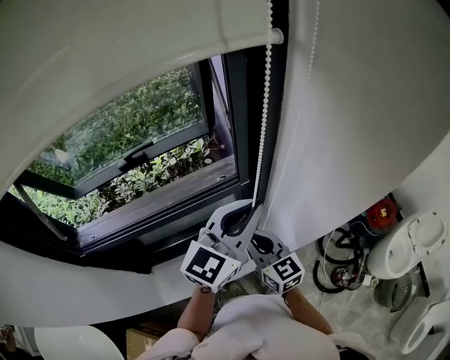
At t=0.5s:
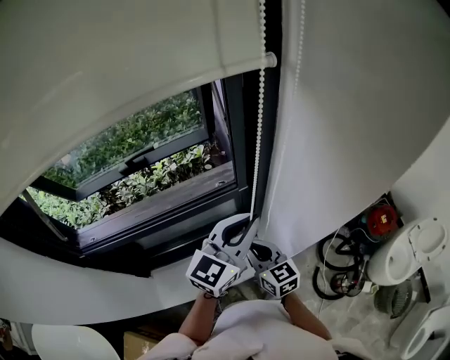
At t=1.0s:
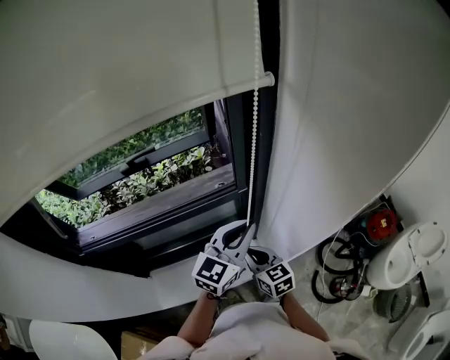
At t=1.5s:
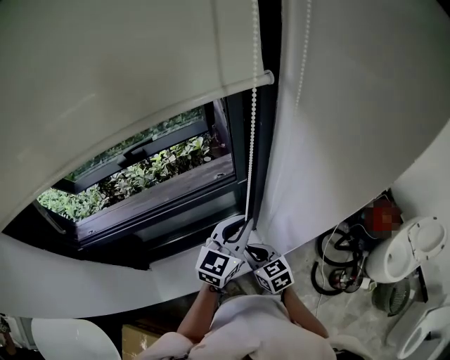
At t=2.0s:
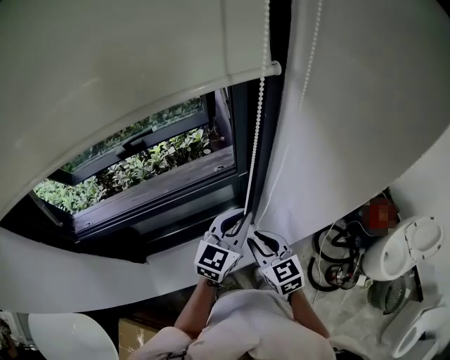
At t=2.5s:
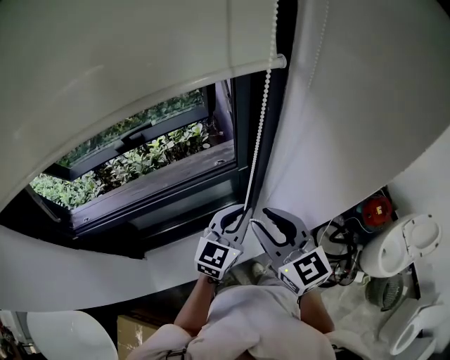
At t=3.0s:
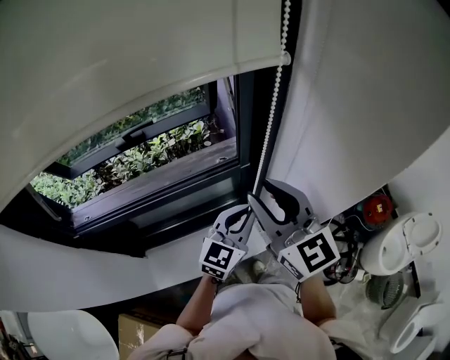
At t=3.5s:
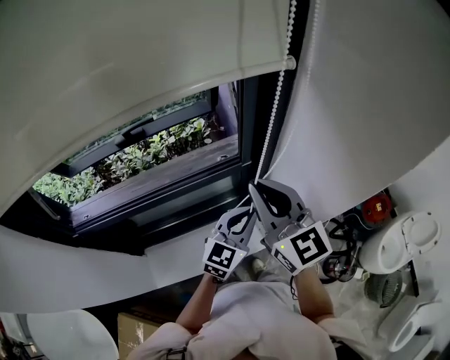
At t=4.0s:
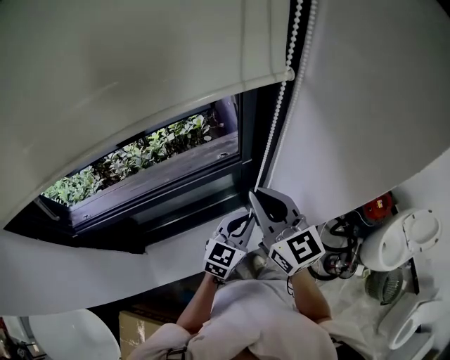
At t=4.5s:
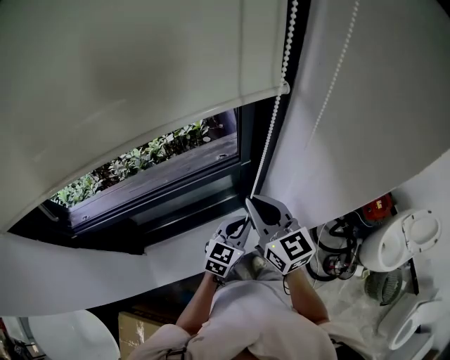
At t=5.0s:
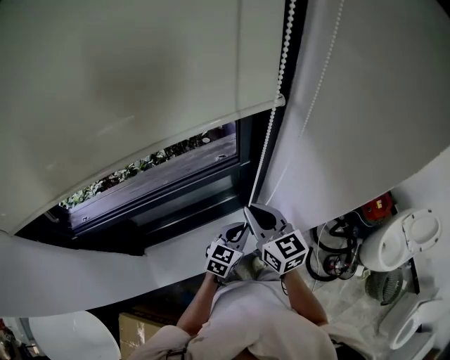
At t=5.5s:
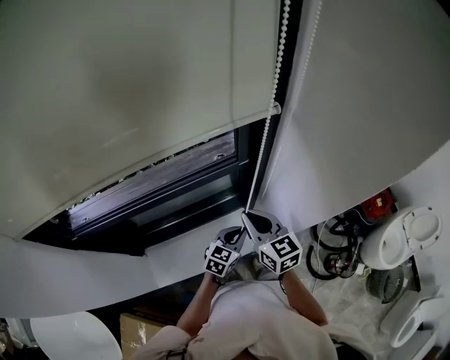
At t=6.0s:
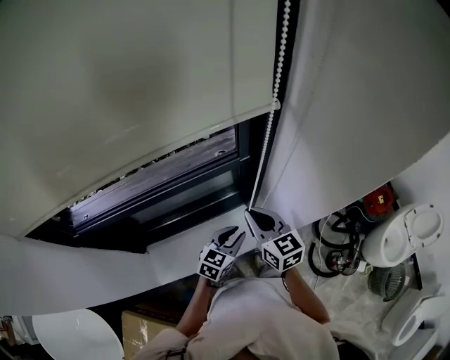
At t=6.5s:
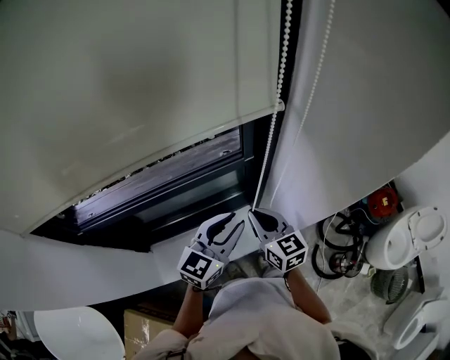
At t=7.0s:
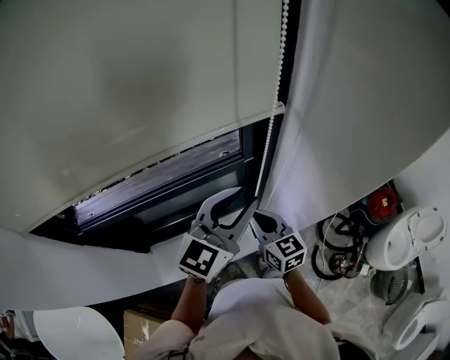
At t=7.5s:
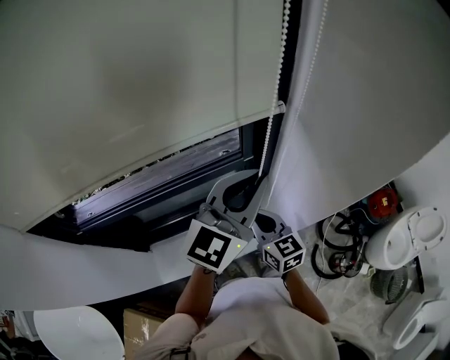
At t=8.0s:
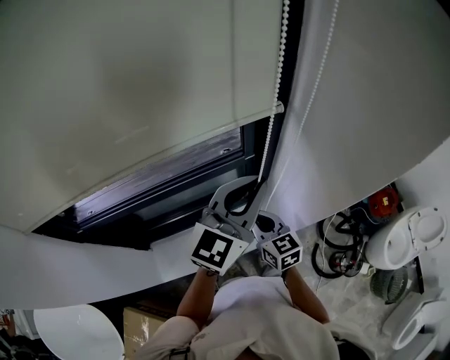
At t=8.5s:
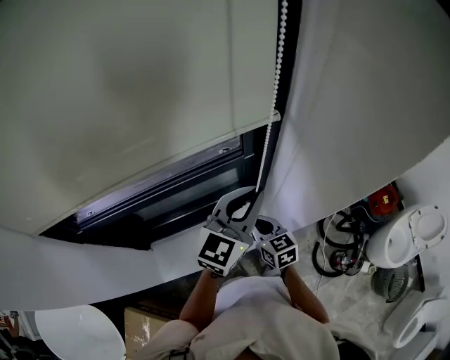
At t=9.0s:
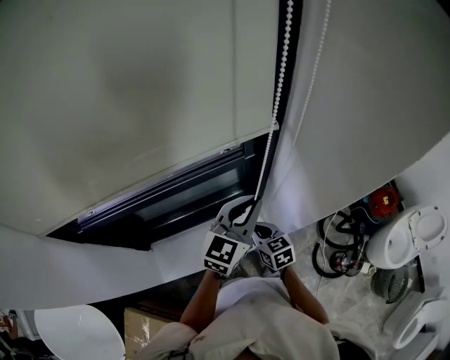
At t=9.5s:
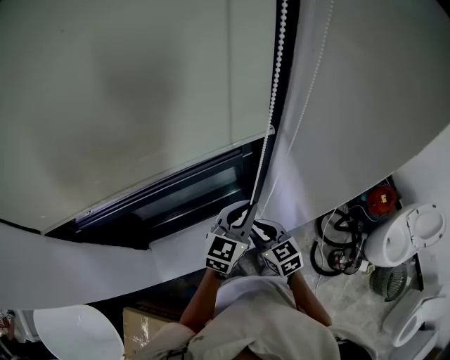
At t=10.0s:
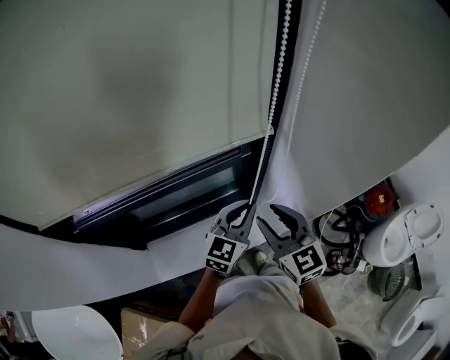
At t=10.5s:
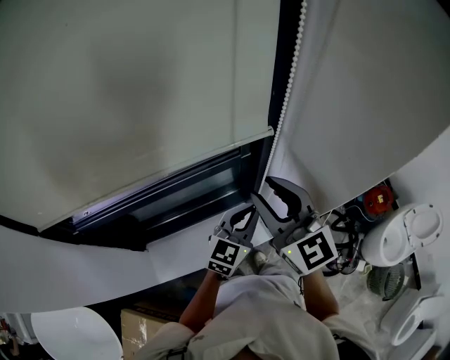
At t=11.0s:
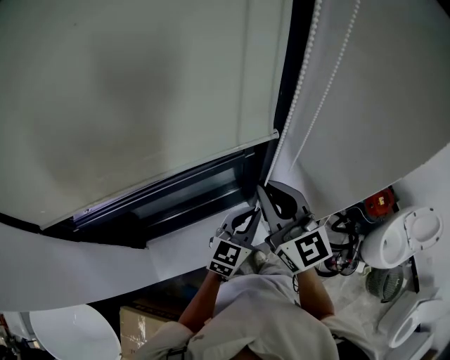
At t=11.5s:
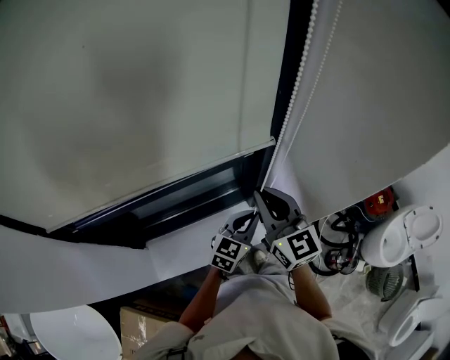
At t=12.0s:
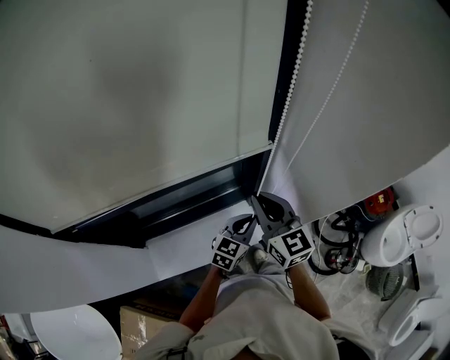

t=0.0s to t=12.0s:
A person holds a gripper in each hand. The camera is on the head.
t=0.0s to t=2.0s: The left gripper goes approximately 15 cm downward. The right gripper goes downward and returns, roughly 10 cm each way.
t=2.0s to t=4.0s: The left gripper heads downward, covering about 5 cm; the right gripper is displaced upward by some 15 cm, and changes its angle by some 20 degrees.
t=4.0s to t=6.0s: The grippers both shift downward by roughly 15 cm.
t=6.0s to t=8.0s: The left gripper is displaced upward by some 30 cm, and swivels about 30 degrees.
t=8.0s to t=10.0s: The right gripper goes approximately 10 cm upward, and opens; the left gripper is displaced downward by some 15 cm.
t=10.0s to t=12.0s: The right gripper travels upward and back again, about 10 cm each way, and closes its fingers; the left gripper goes some 15 cm downward.

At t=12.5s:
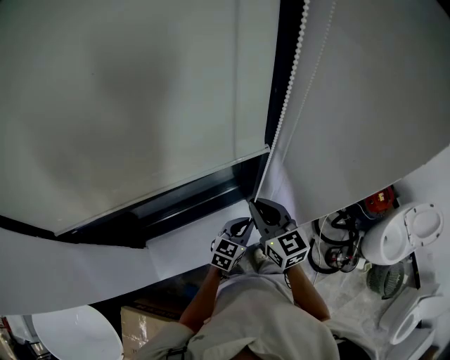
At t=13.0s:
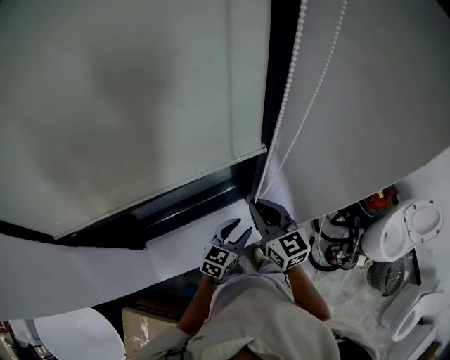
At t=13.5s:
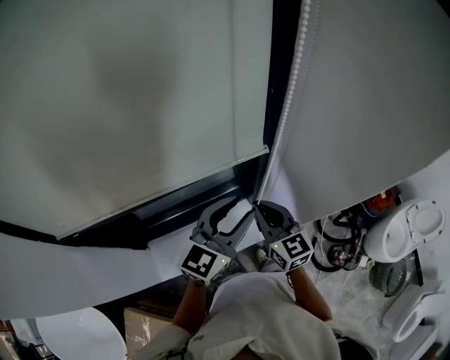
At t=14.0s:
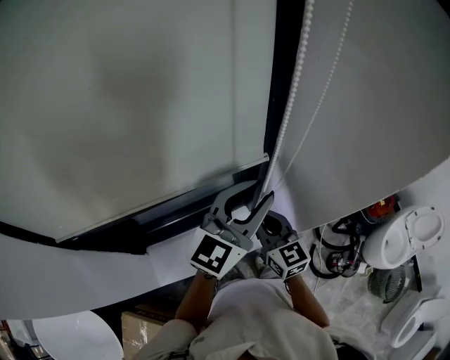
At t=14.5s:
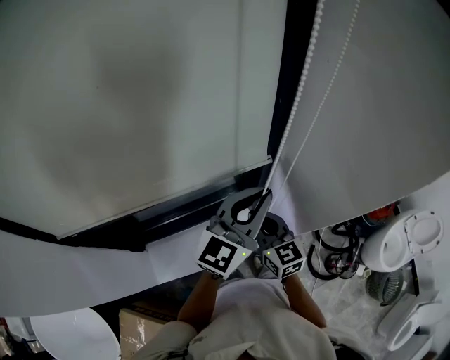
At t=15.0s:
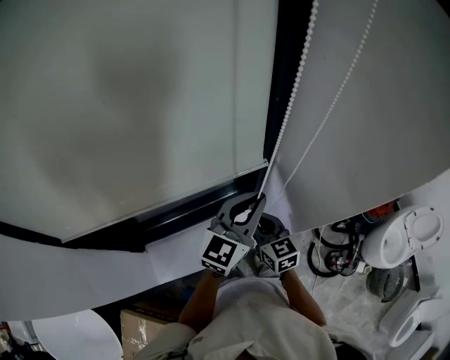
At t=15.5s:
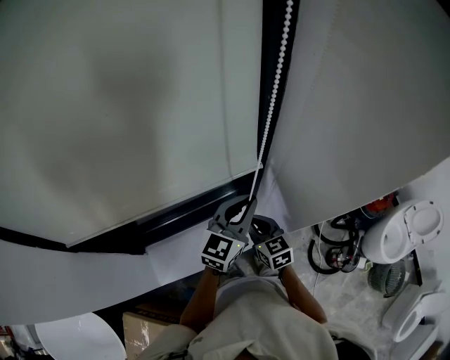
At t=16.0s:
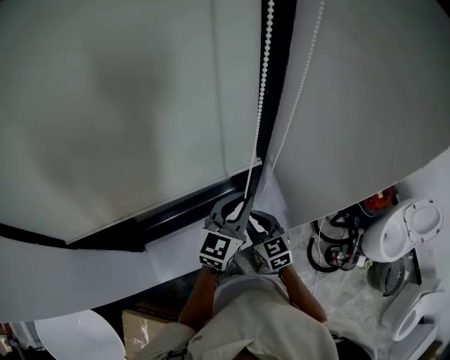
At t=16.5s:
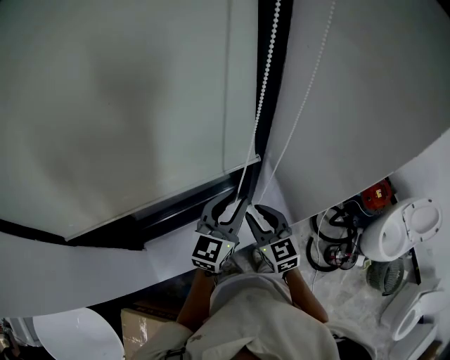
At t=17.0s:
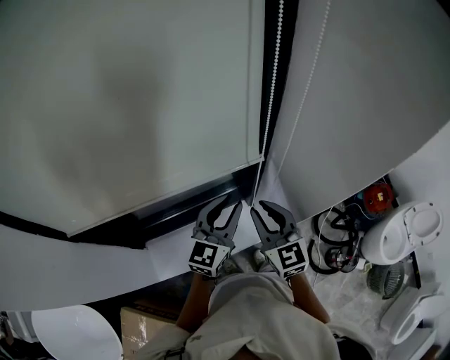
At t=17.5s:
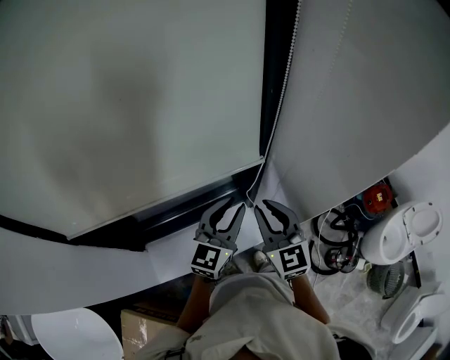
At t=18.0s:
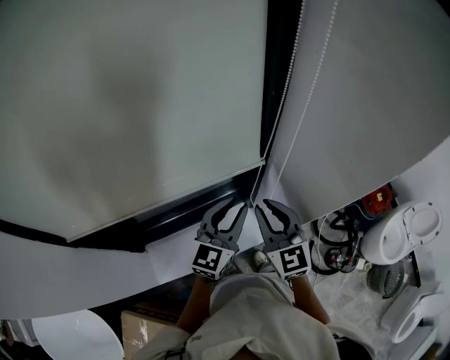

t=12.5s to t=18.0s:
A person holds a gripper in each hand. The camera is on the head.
t=12.5s to t=14.5s: The left gripper shifts some 30 cm upward, rotates roughly 30 degrees, and opens, then closes once more.
t=14.5s to t=16.0s: The two grippers go roughly 10 cm downward.
t=16.0s to t=18.0s: The right gripper goes some 15 cm upward, and turns by about 20 degrees.

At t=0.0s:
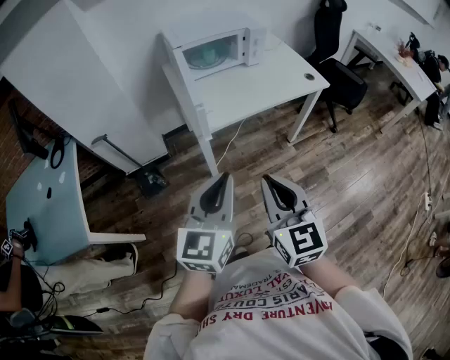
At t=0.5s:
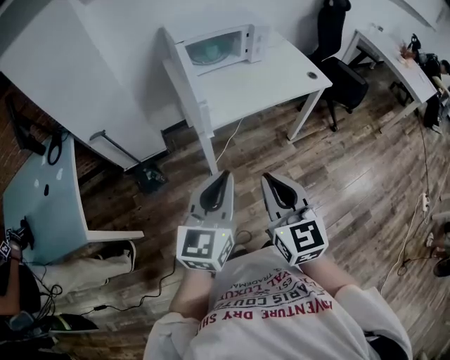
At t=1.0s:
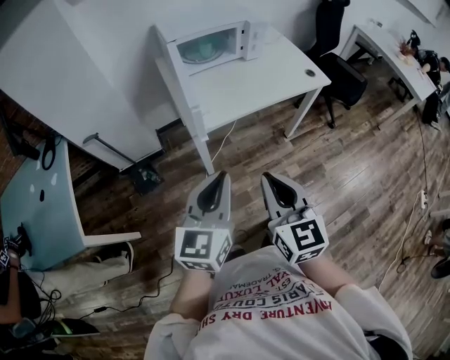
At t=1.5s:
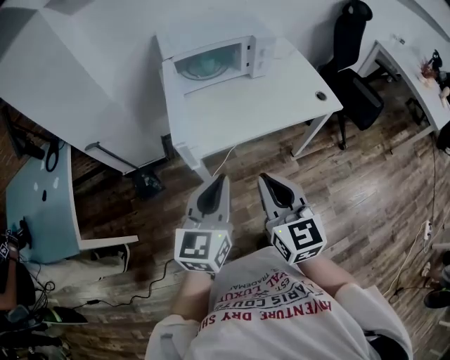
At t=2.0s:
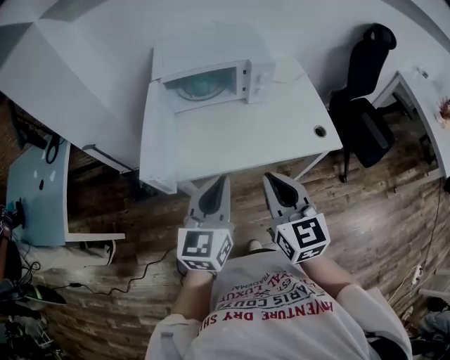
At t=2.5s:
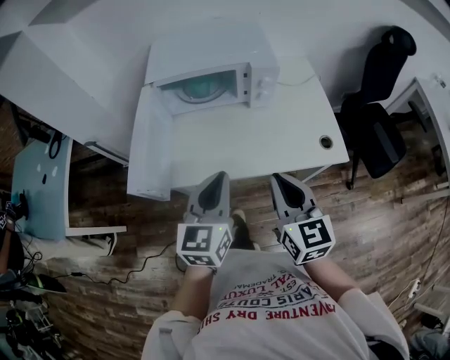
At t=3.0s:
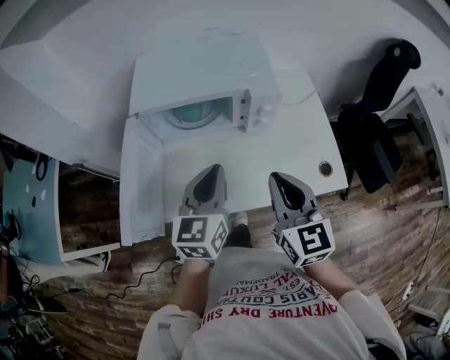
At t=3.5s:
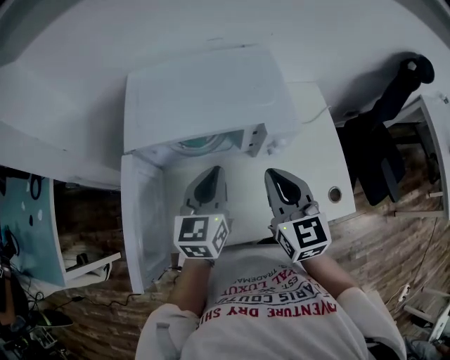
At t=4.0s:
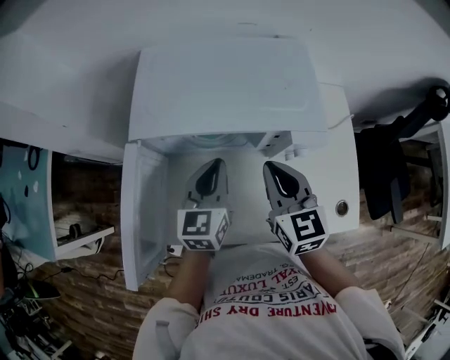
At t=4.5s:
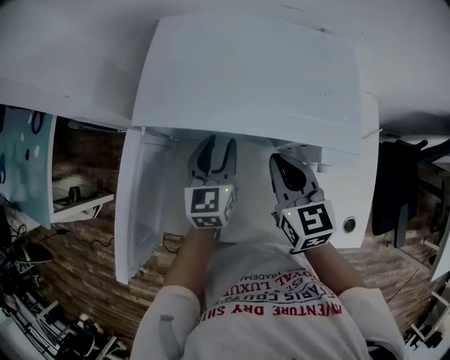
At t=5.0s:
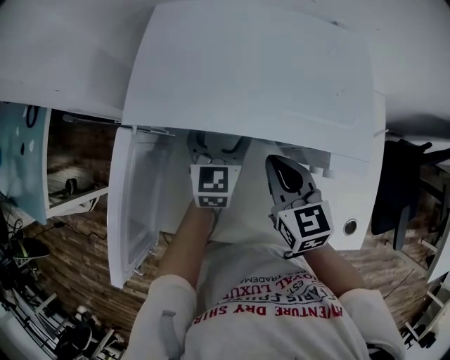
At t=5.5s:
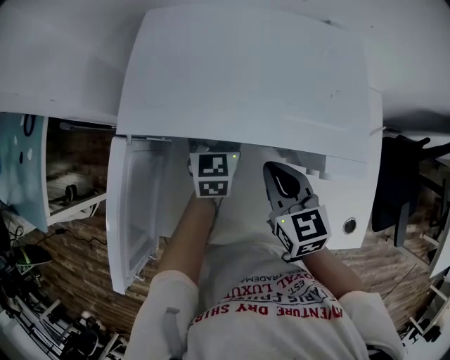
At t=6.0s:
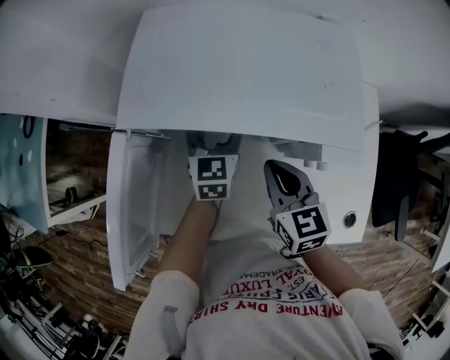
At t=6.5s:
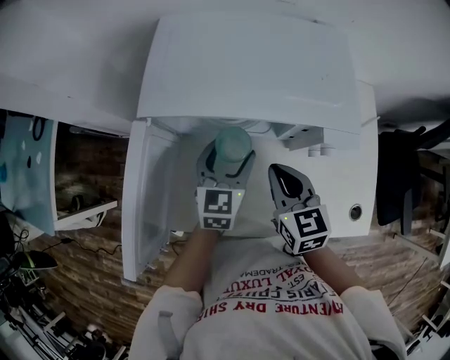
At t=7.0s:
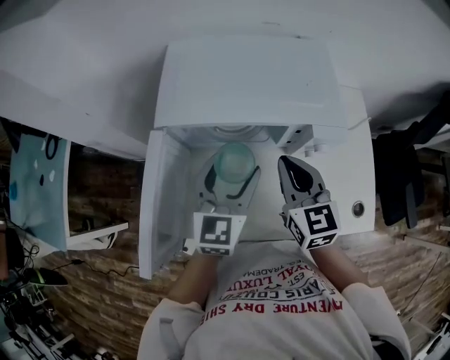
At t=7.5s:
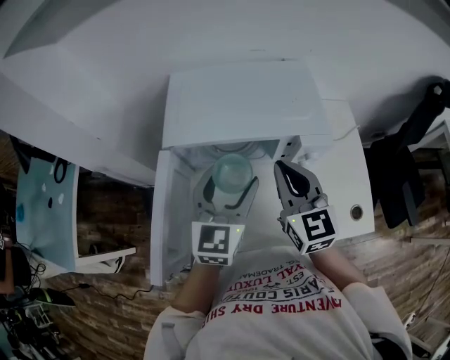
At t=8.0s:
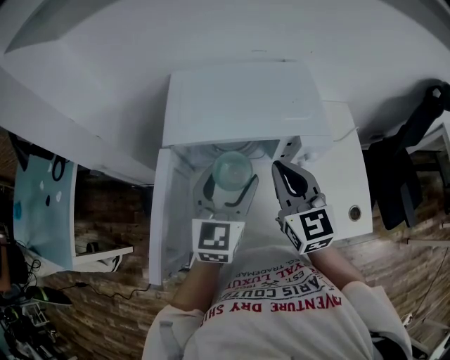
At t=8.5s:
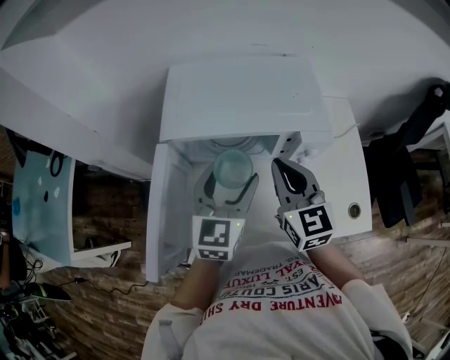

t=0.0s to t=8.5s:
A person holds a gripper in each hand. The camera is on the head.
t=0.0s to t=2.0s: Both grippers move forward and to the right, about 35 cm.
t=2.0s to t=4.0s: Both grippers travel together forward, roughly 40 cm.
t=4.0s to t=6.5s: Both grippers move downward, roughly 5 cm. The left gripper moves about 15 cm forward and comes back, and opens.
t=6.5s to t=8.5s: The left gripper shifts about 15 cm upward and backward, while the right gripper goes about 10 cm upward, and rotates roughly 20 degrees.

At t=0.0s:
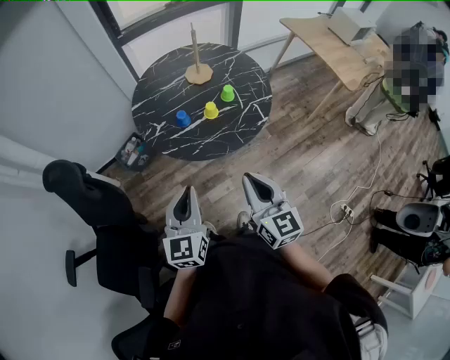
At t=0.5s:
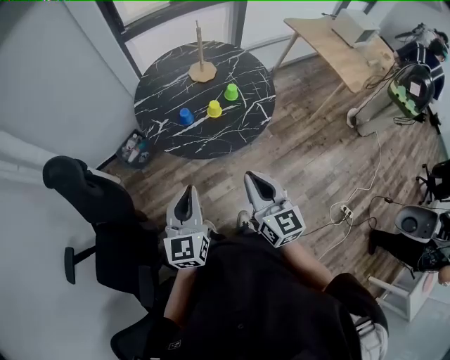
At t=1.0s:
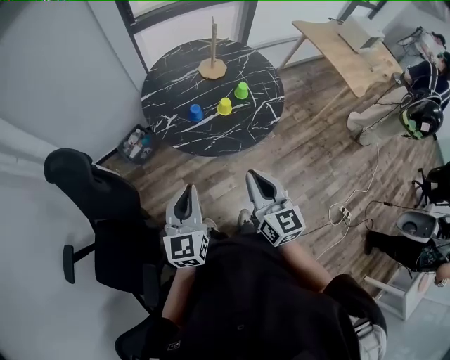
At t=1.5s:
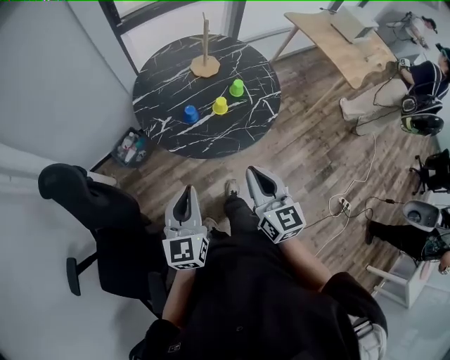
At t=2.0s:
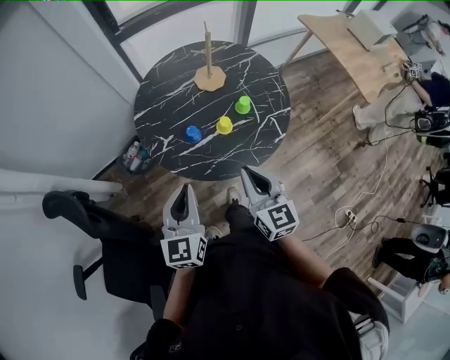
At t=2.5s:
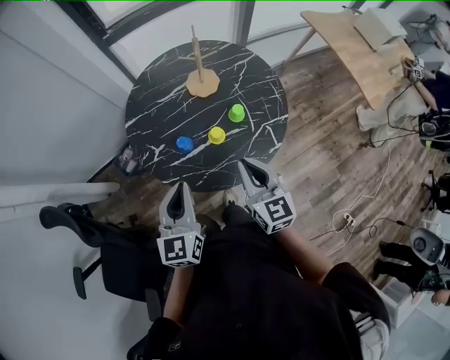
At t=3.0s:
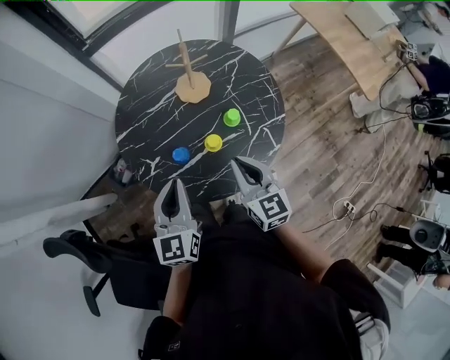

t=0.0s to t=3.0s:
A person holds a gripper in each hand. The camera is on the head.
t=0.0s to t=1.5s: The right gripper goes approximately 10 cm to the left and forward. The left gripper travels to the left by about 5 cm.
t=1.5s to t=3.0s: The two grippers go approximately 25 cm forward.
